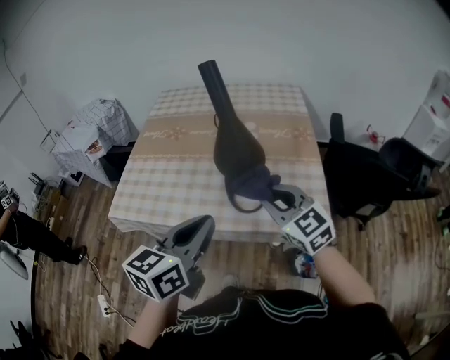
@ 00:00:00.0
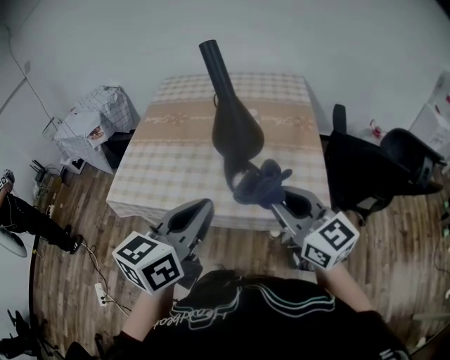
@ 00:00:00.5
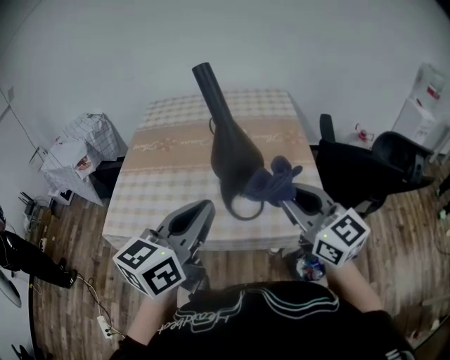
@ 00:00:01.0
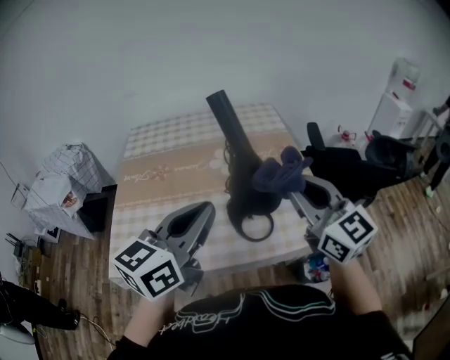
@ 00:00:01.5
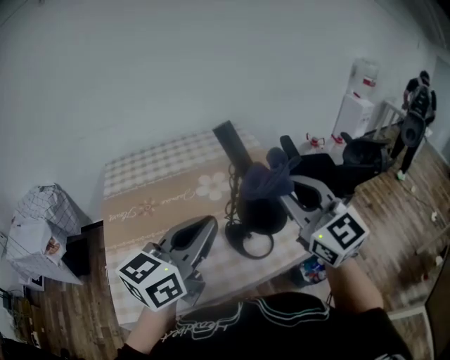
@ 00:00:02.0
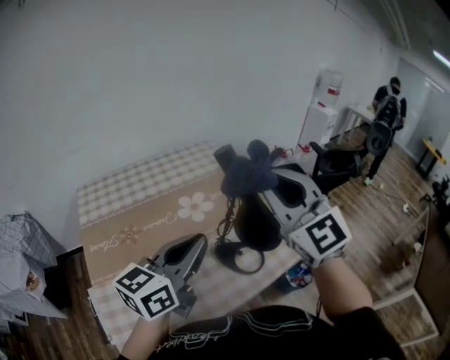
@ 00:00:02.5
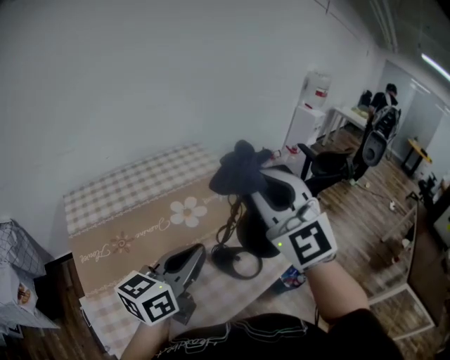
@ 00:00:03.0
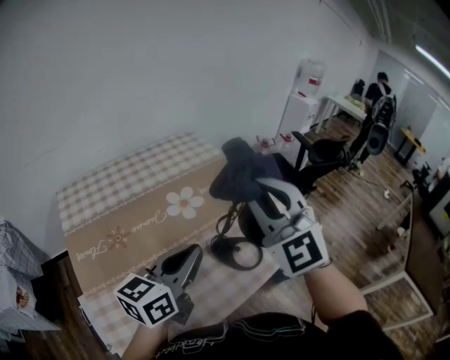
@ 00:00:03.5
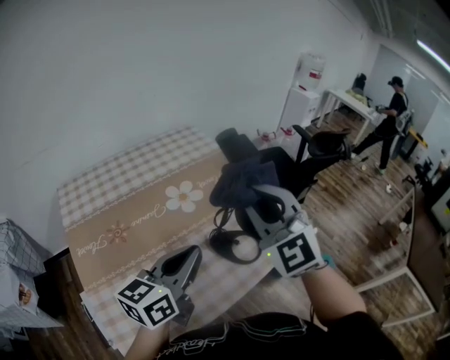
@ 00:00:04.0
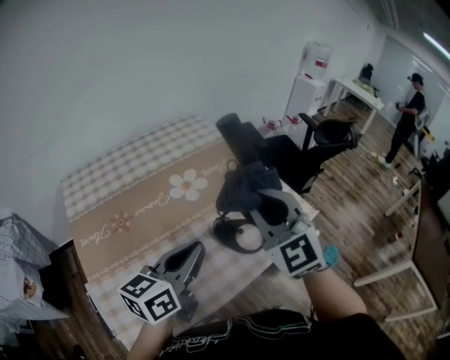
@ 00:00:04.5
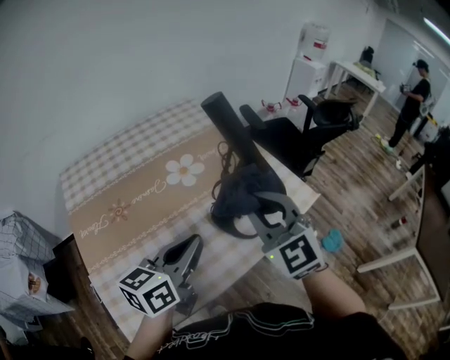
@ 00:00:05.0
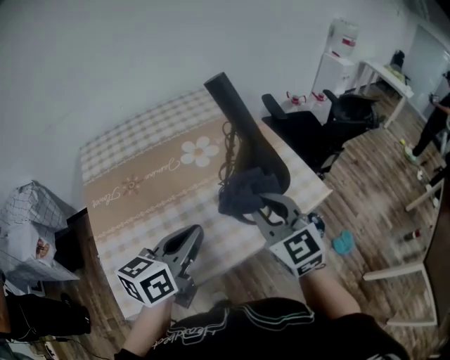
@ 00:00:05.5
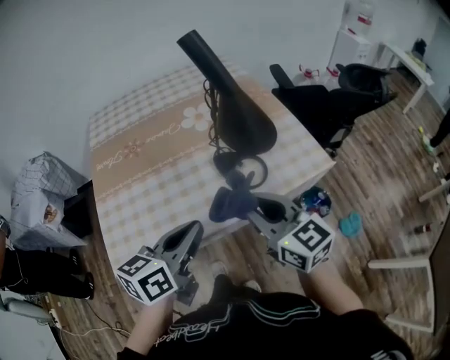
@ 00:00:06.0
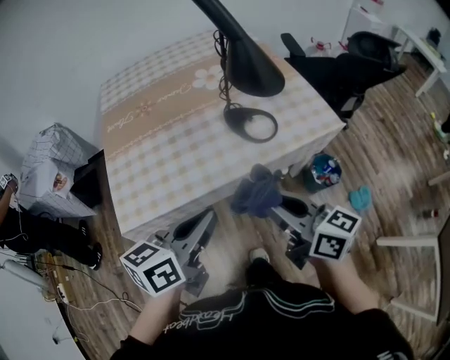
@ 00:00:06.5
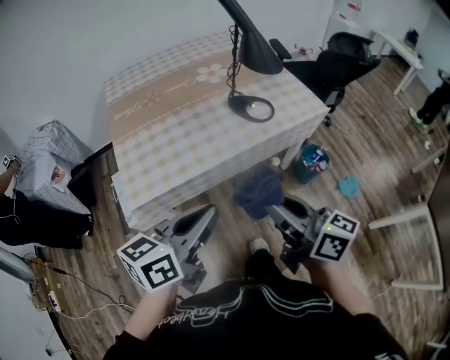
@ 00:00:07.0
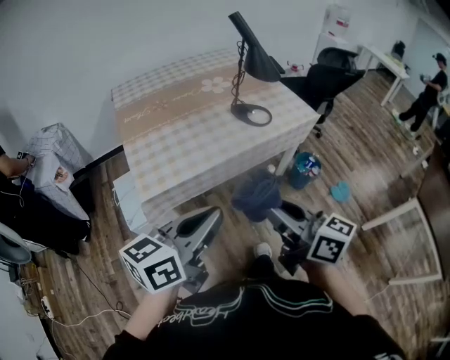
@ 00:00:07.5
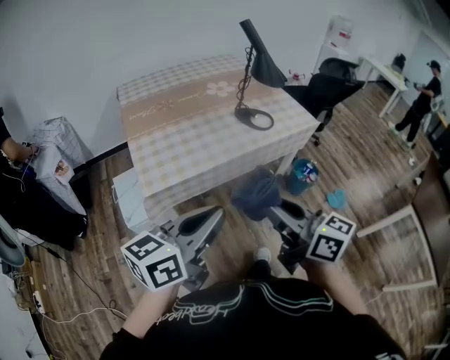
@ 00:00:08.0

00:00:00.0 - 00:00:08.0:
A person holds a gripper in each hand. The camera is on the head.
00:00:00.0 - 00:00:02.0: The right gripper heads upward, covering about 20 cm, and swivels approximately 40 degrees; the left gripper moves approximately 20 cm, and changes its angle by about 40 degrees.
00:00:02.0 - 00:00:04.0: The right gripper goes some 10 cm to the left, and swivels some 30 degrees, while the left gripper heads downward and to the left, covering some 10 cm.
00:00:04.0 - 00:00:06.0: The left gripper travels backward, to the right and downward by about 20 cm, and swivels some 20 degrees. The right gripper heads downward, backward and to the right, covering approximately 25 cm, and twists about 50 degrees clockwise, seen from behind.
00:00:06.0 - 00:00:08.0: Both grippers travel together backward, some 35 cm. The right gripper changes its angle by some 20 degrees.

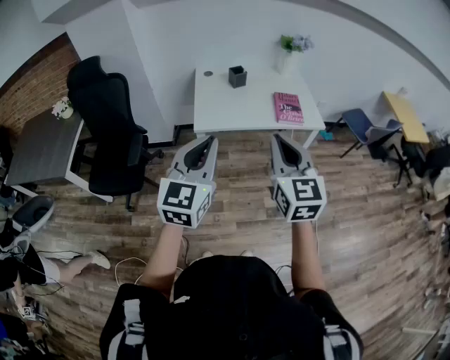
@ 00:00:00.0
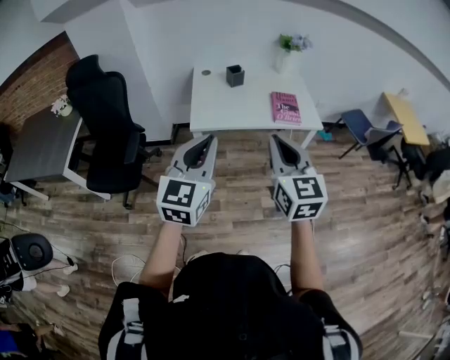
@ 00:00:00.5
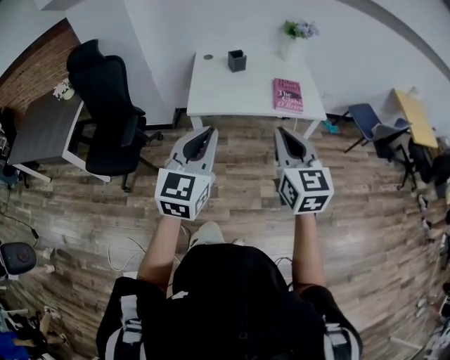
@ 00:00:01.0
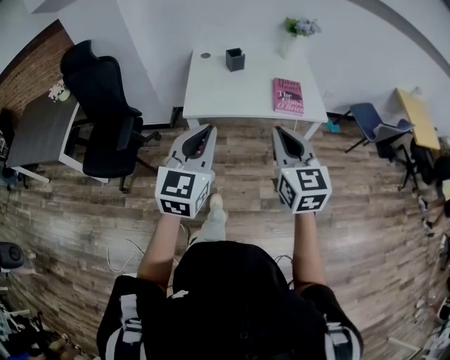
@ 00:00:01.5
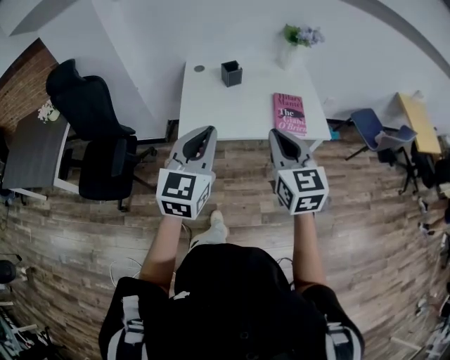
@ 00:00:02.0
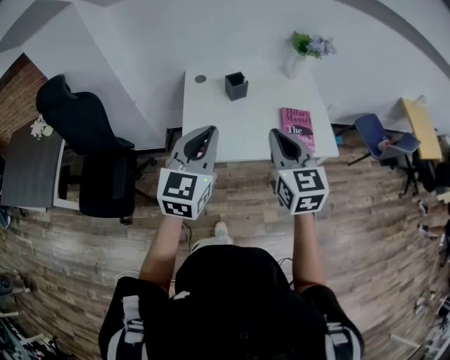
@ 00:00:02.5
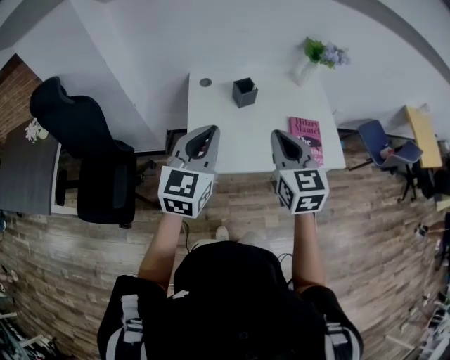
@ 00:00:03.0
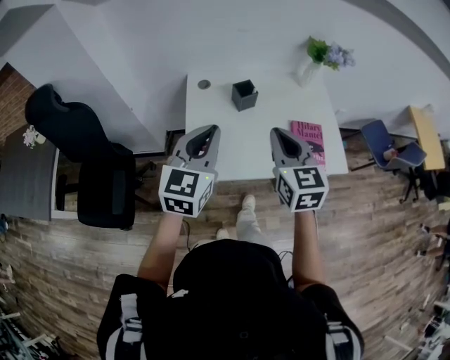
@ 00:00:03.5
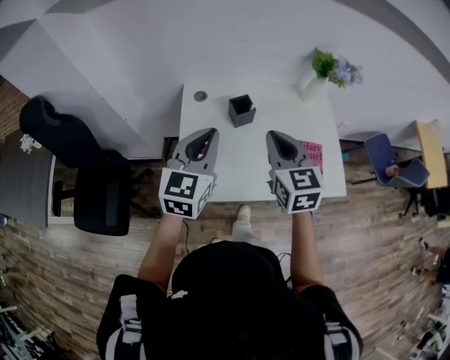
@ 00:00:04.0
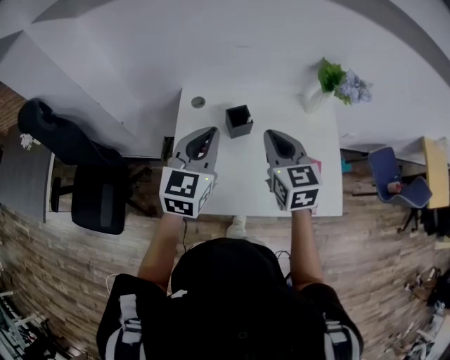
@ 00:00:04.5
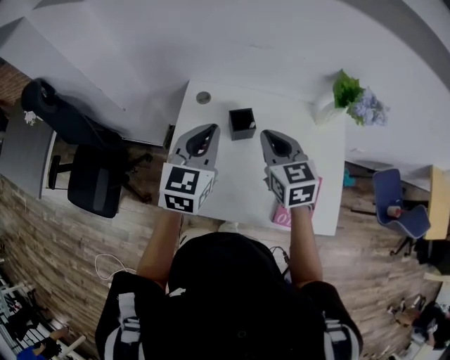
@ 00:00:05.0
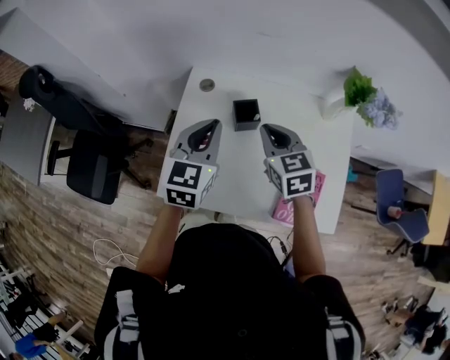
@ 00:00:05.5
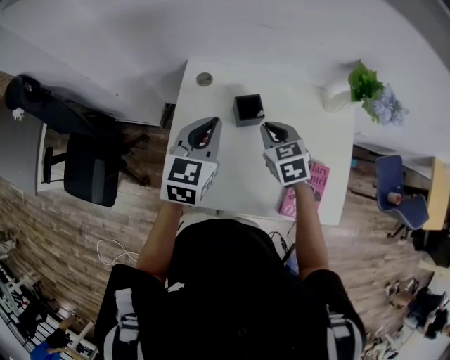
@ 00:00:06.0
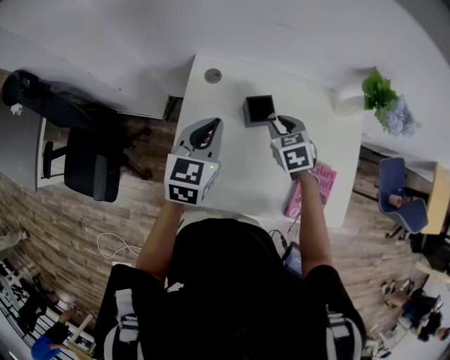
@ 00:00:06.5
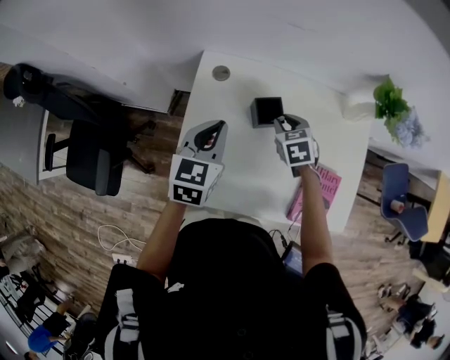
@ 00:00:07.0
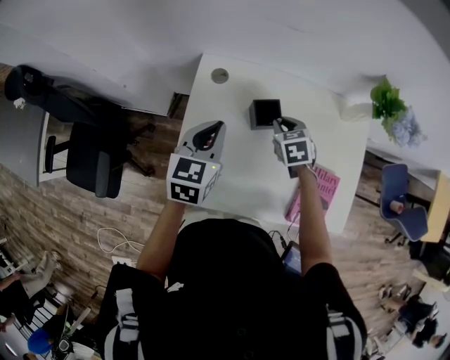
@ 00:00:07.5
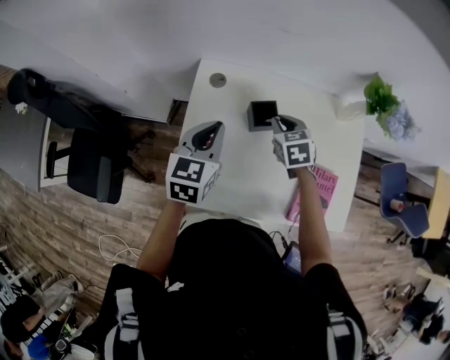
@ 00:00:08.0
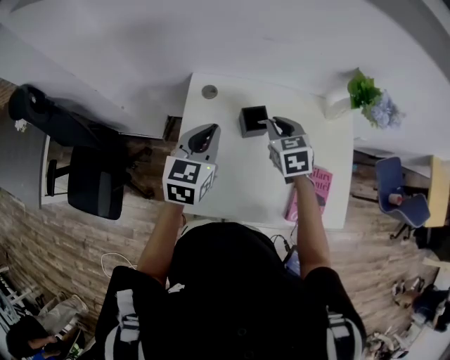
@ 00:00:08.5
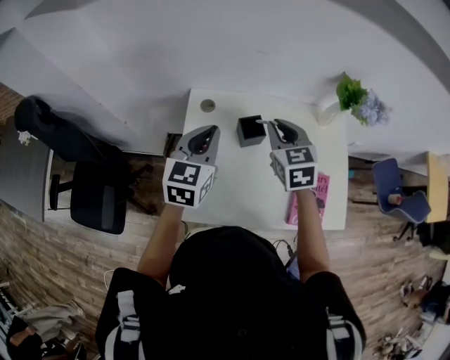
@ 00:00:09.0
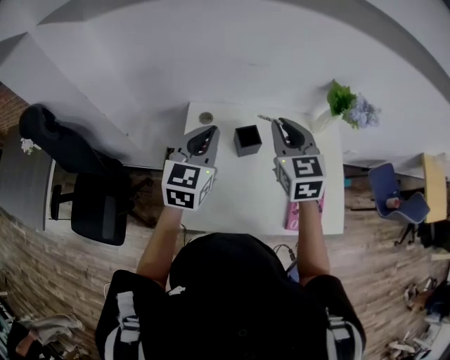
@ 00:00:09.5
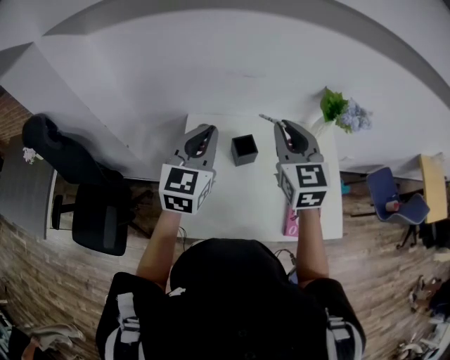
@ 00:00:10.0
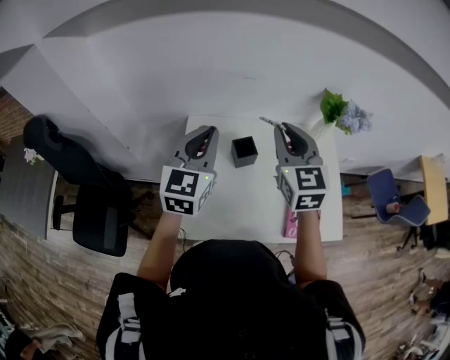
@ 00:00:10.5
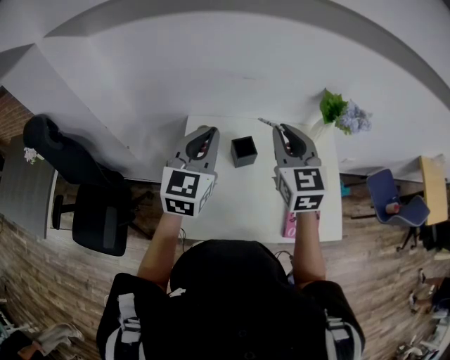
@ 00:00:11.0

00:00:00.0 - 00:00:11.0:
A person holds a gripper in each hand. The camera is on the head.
00:00:00.0 - 00:00:02.0: The grippers both shift forward by some 20 cm.
00:00:02.0 - 00:00:03.5: The two grippers go roughly 25 cm forward.
00:00:03.5 - 00:00:05.5: The grippers both shift forward and downward by approximately 25 cm. The right gripper swivels approximately 30 degrees.
00:00:05.5 - 00:00:07.5: The right gripper goes approximately 20 cm downward and forward, and swivels about 20 degrees. Meanwhile the left gripper moves downward and to the left, roughly 10 cm.
00:00:07.5 - 00:00:09.0: The left gripper travels upward by approximately 10 cm. The right gripper goes some 20 cm upward, and swivels roughly 30 degrees.
00:00:09.0 - 00:00:11.0: The grippers both shift upward by some 10 cm.

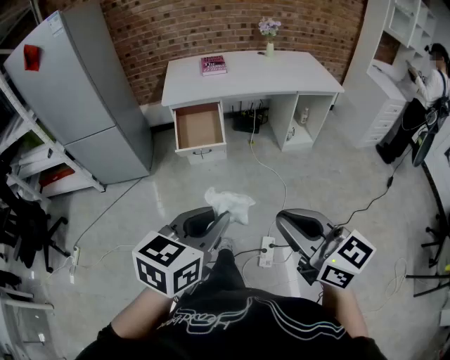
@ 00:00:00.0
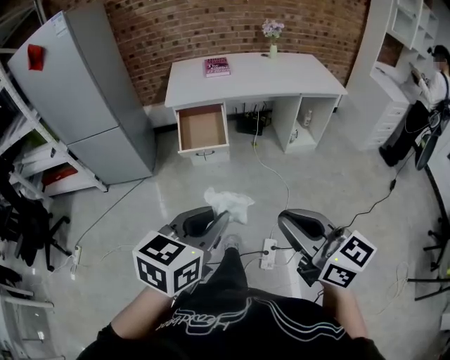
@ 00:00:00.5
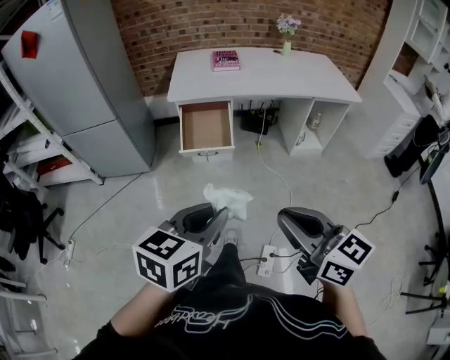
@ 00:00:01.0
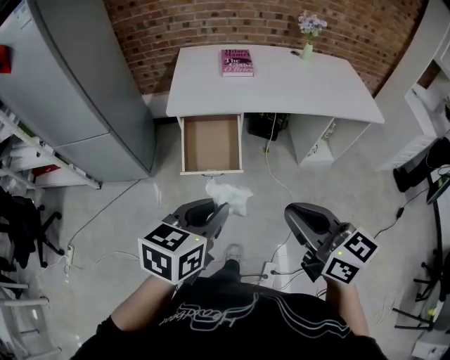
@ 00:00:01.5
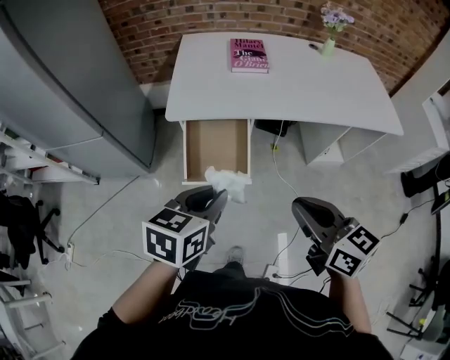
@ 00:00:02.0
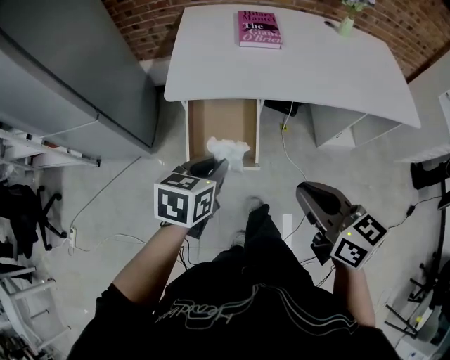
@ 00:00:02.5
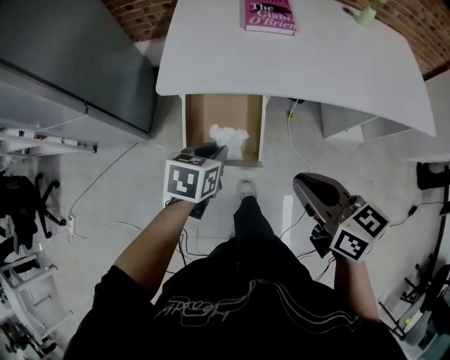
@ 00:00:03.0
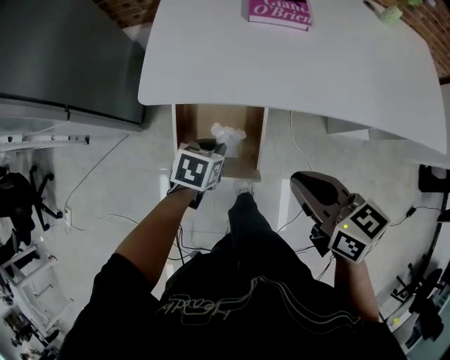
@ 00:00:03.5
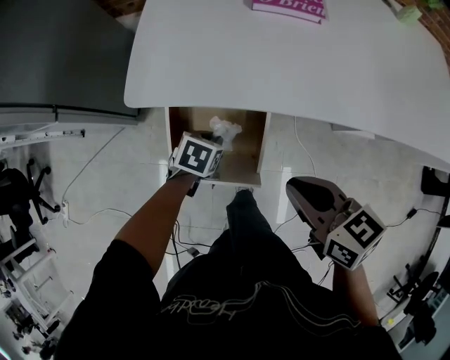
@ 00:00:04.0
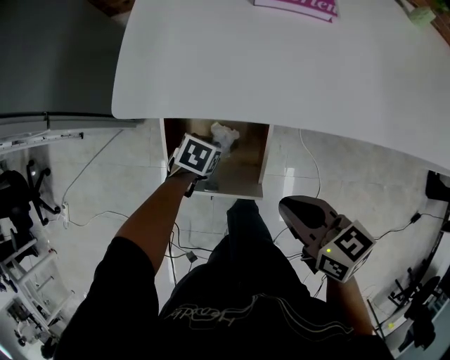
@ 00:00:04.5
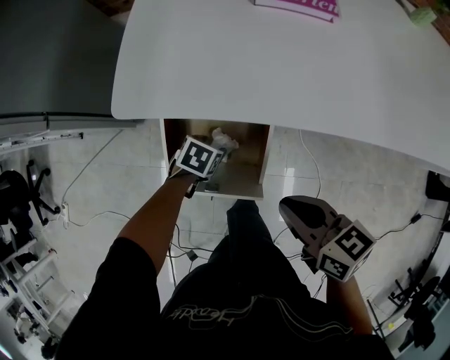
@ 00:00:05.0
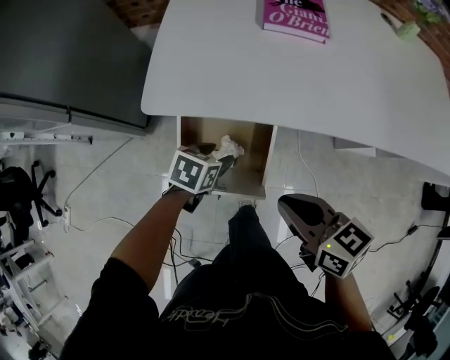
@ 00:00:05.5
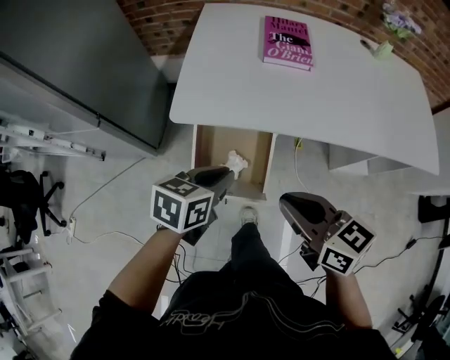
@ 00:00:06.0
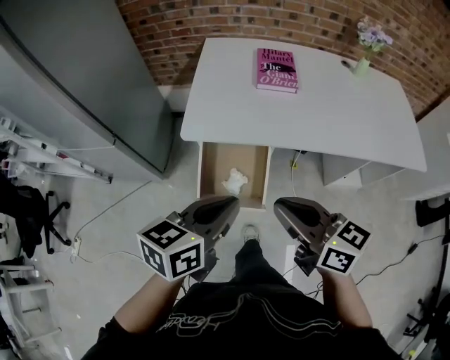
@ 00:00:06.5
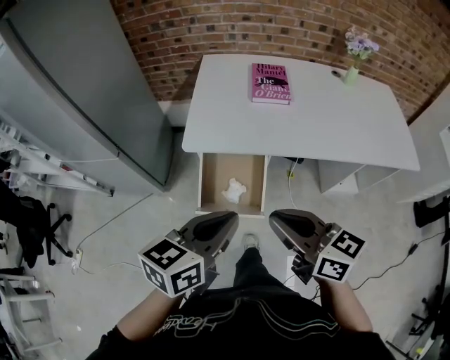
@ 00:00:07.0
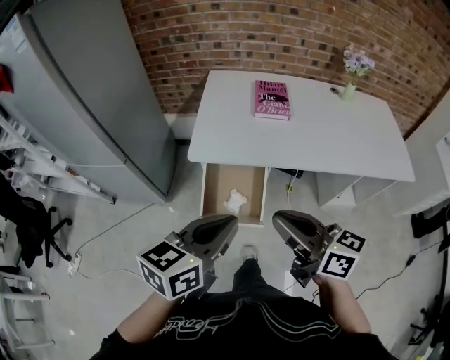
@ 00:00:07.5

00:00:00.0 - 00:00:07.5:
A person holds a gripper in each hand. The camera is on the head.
00:00:00.0 - 00:00:02.0: The pair of grippers is taken forward, about 50 cm.
00:00:02.0 - 00:00:04.0: The left gripper heads downward and forward, covering approximately 50 cm, and points its fingers roughly 30 degrees further downward, while the right gripper is displaced forward and downward by some 35 cm, and turns by some 20 degrees.
00:00:04.0 - 00:00:05.5: The left gripper goes approximately 5 cm upward, and opens.
00:00:05.5 - 00:00:07.5: The left gripper travels upward and backward by some 50 cm, tips its fingers upward by some 40 degrees, and closes up; the right gripper travels upward and backward by approximately 30 cm, and rotates roughly 30 degrees.
